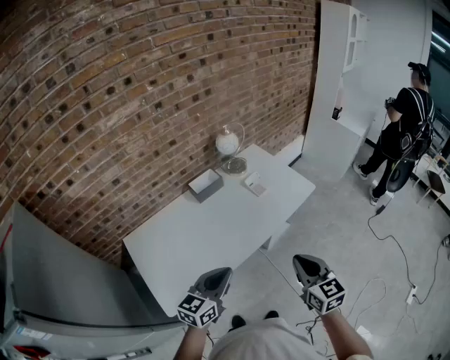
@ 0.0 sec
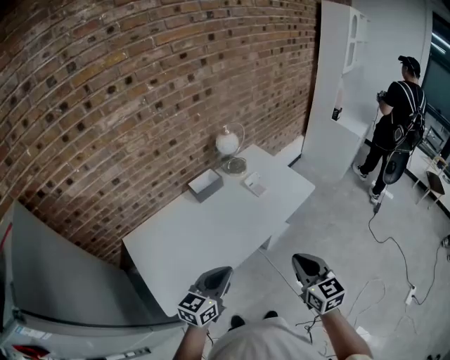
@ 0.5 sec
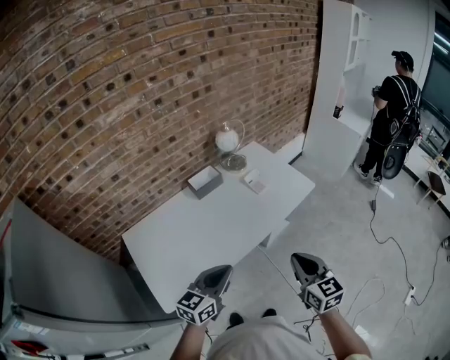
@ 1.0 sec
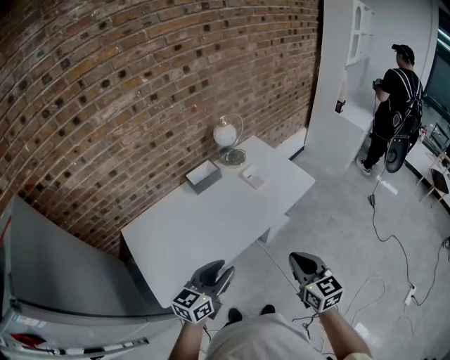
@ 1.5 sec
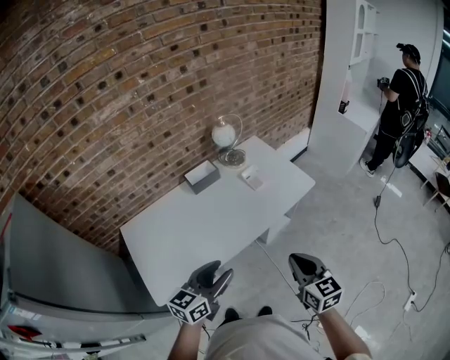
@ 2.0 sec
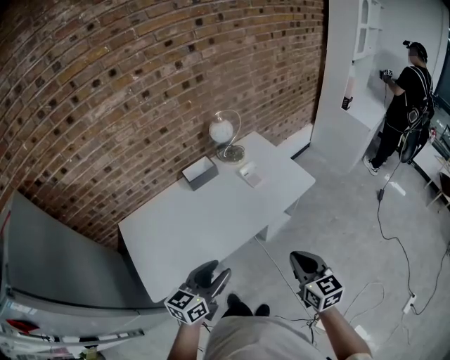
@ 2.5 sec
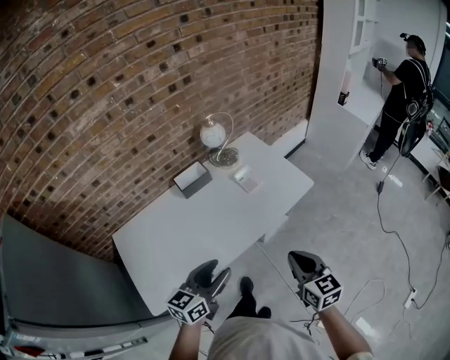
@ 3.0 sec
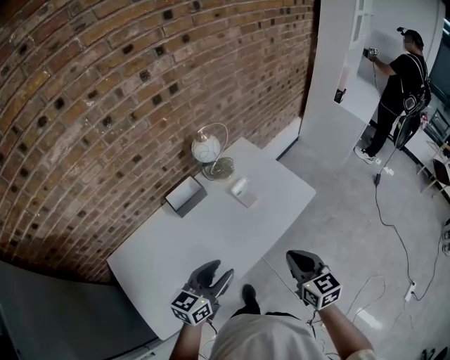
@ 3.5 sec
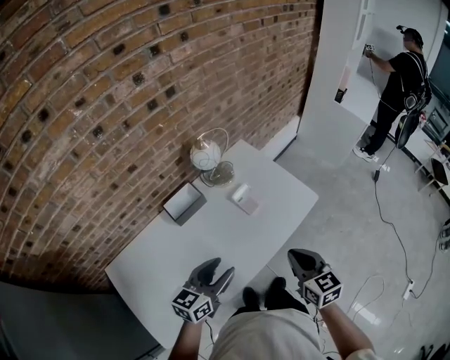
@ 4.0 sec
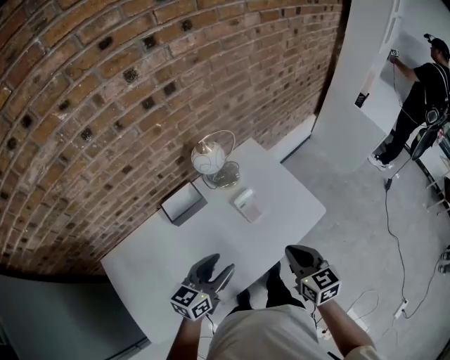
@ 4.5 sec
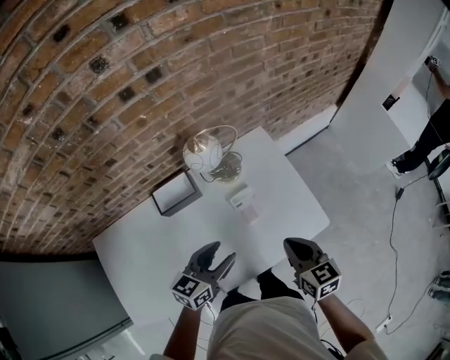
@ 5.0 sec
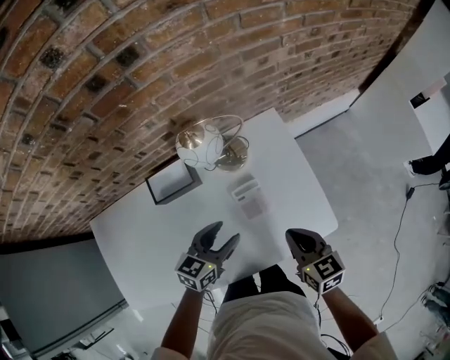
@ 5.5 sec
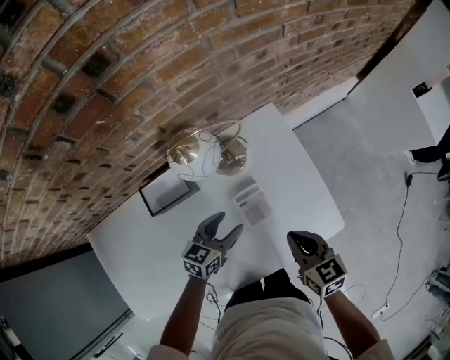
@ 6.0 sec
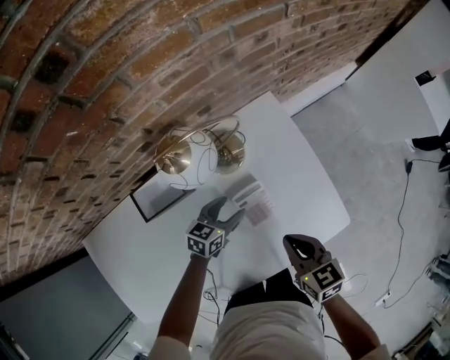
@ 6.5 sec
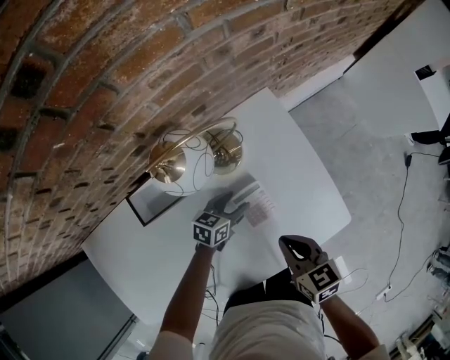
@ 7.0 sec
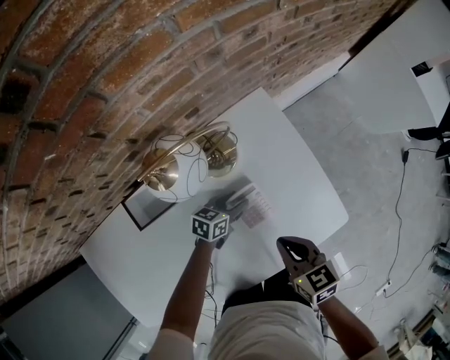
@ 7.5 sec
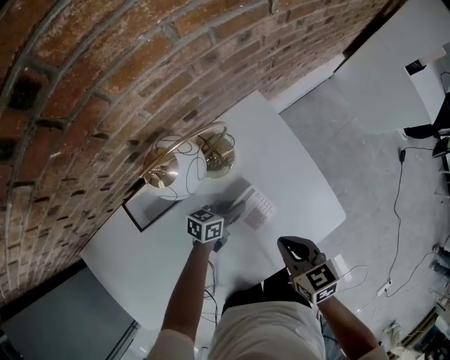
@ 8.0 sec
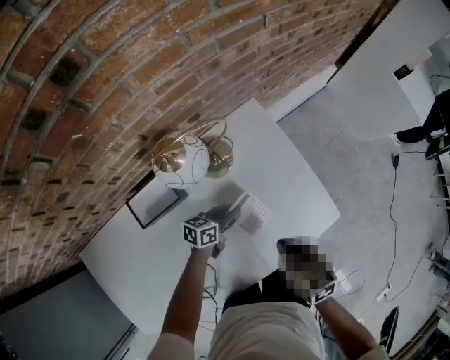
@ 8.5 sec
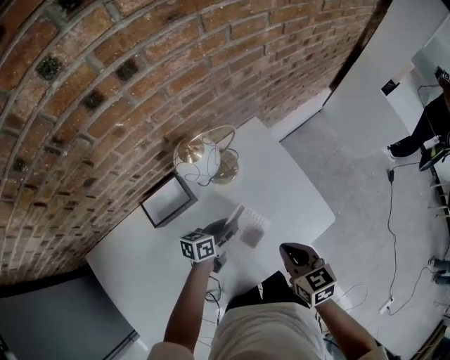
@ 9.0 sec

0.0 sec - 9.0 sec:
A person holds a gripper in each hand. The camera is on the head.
0.0 sec - 2.0 sec: Both grippers move to the right, about 5 cm. The left gripper opens up.
2.0 sec - 4.5 sec: Both grippers travel together forward, approximately 35 cm.
4.5 sec - 7.0 sec: The right gripper goes some 25 cm forward and downward, and turns by approximately 20 degrees; the left gripper travels downward and forward by some 40 cm, and turns by approximately 30 degrees.
7.0 sec - 9.0 sec: Both grippers travel together upward and backward, approximately 10 cm. The left gripper closes its fingers.

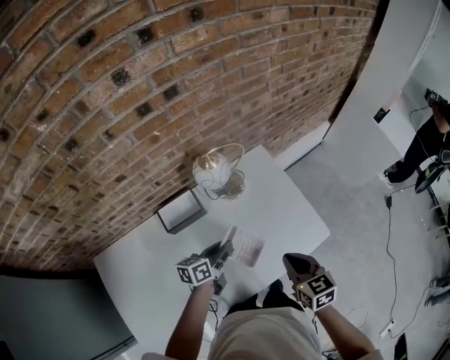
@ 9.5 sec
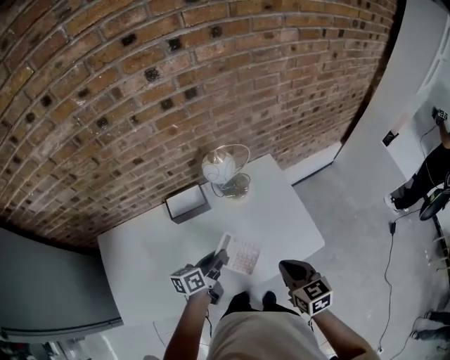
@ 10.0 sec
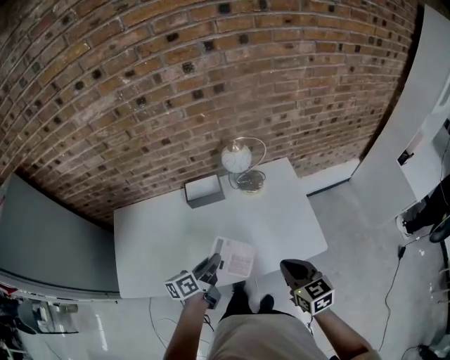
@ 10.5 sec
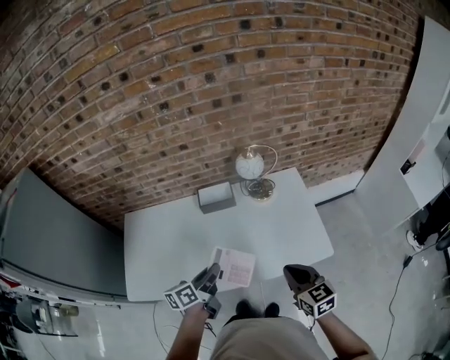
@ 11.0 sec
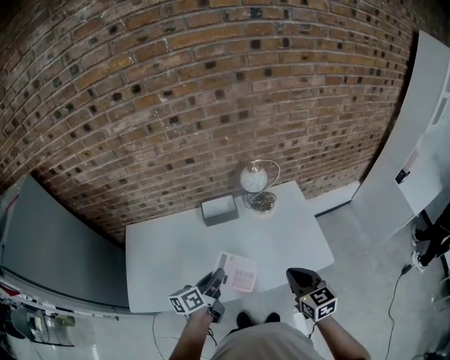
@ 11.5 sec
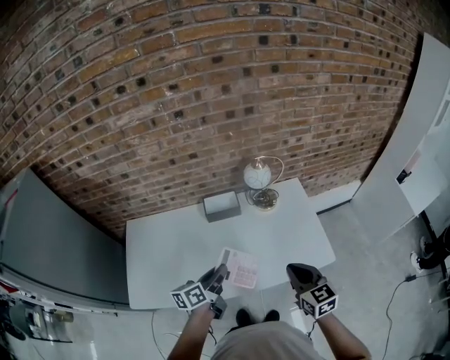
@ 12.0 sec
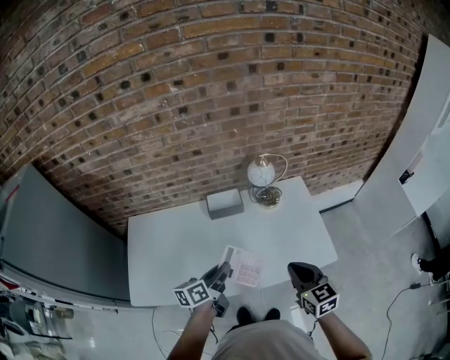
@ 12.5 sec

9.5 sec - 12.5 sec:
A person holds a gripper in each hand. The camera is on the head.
9.5 sec - 11.0 sec: The right gripper shifts by approximately 15 cm, and turns by some 20 degrees; the left gripper changes place by about 25 cm, and changes its angle by some 30 degrees.
11.0 sec - 12.5 sec: The right gripper changes place by roughly 5 cm.

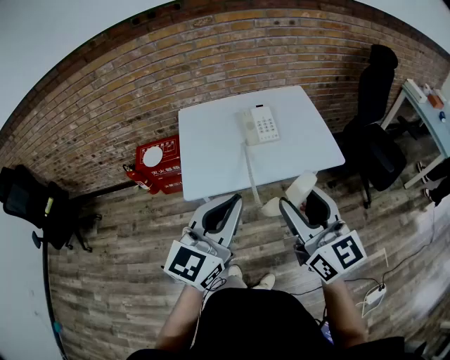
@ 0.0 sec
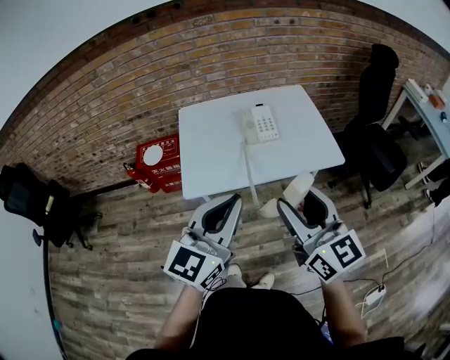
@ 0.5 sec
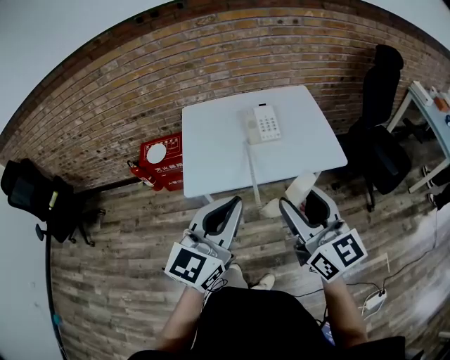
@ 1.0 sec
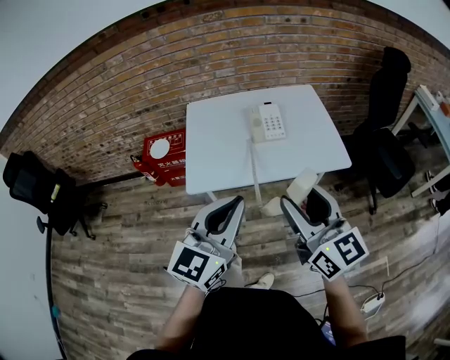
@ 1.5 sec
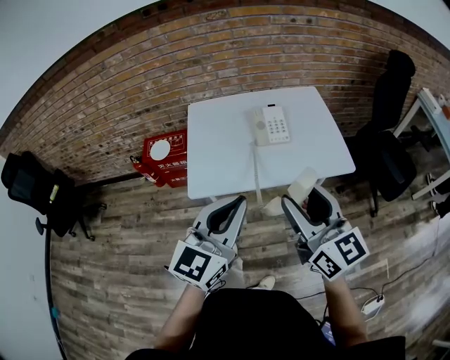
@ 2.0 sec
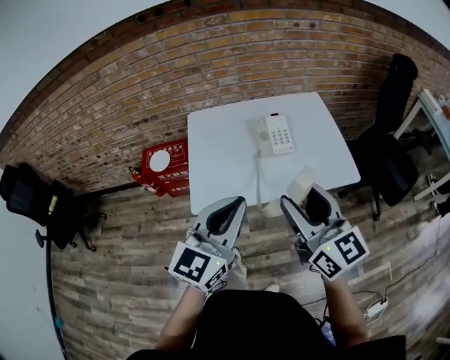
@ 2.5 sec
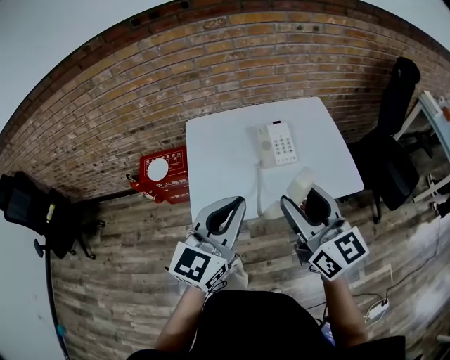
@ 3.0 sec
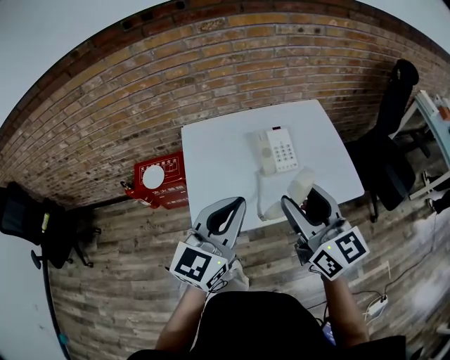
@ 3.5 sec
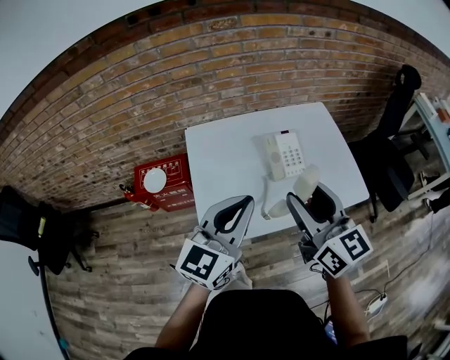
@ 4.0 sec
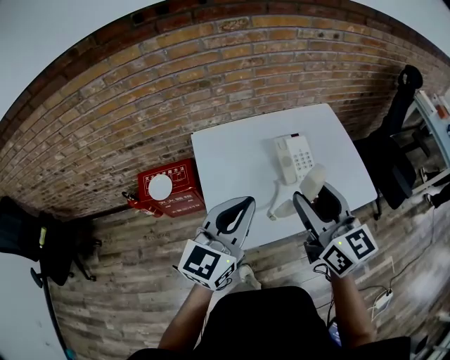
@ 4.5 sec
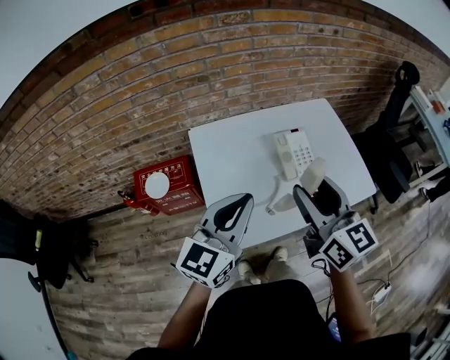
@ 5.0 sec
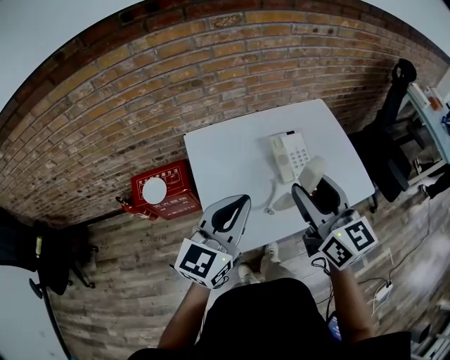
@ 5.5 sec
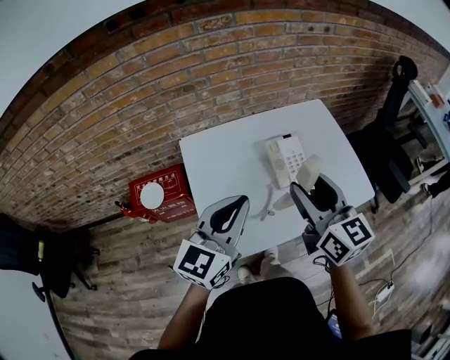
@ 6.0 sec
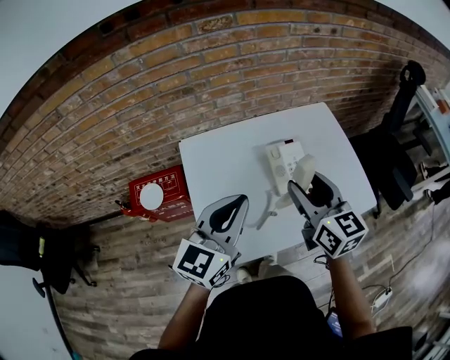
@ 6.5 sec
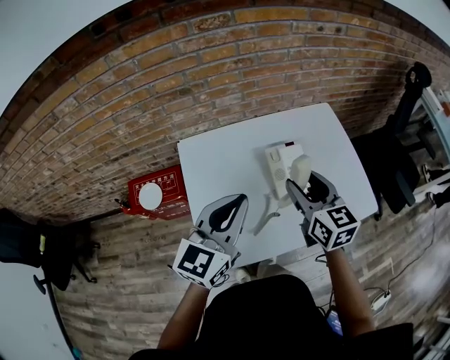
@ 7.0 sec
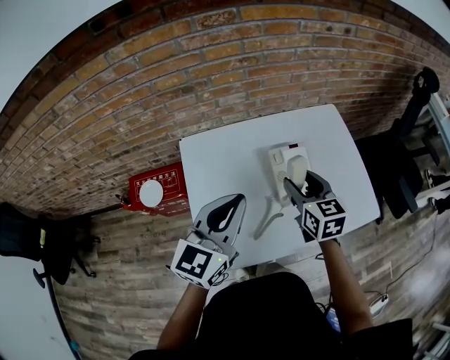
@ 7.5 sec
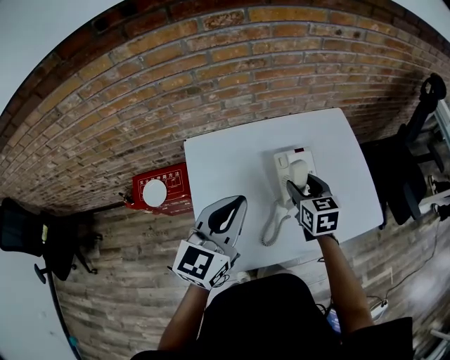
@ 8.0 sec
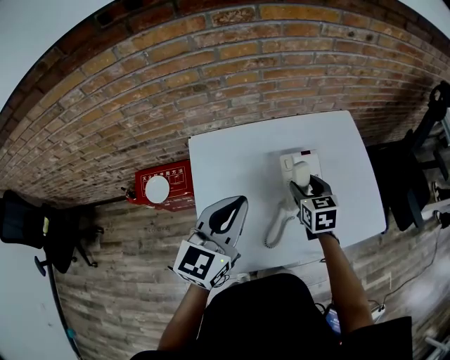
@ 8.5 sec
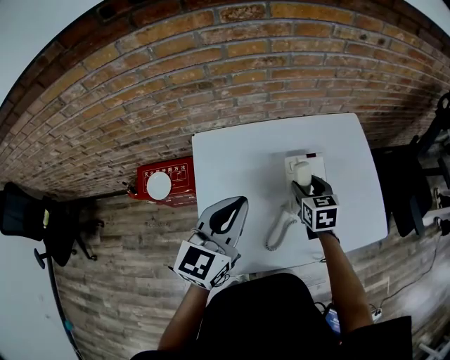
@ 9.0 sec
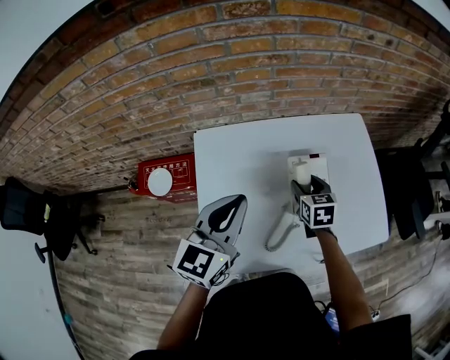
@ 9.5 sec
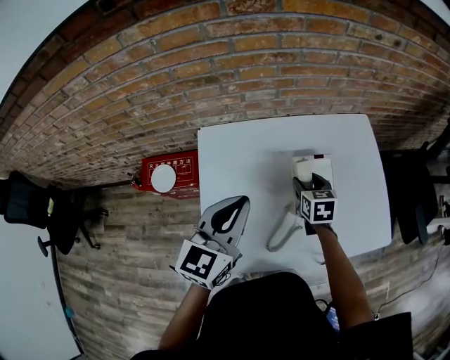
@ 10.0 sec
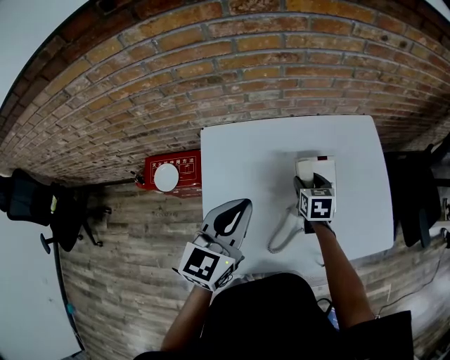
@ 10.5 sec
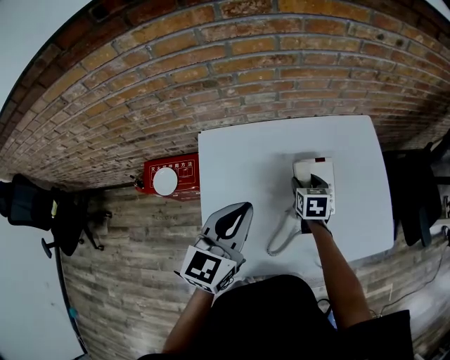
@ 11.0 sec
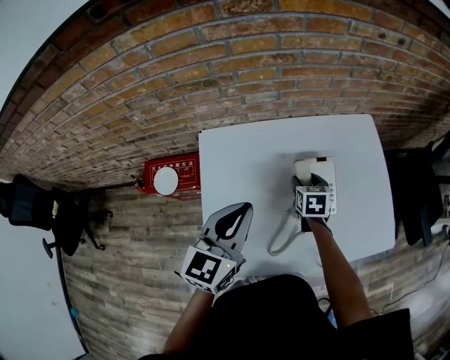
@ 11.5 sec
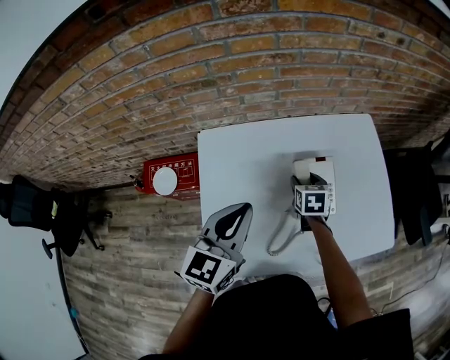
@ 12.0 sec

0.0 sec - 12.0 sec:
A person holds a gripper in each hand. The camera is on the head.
0.0 sec - 2.0 sec: The grippers stay close to where they were, moving slightly.
2.0 sec - 4.0 sec: The two grippers go about 25 cm forward and to the left.
4.0 sec - 6.0 sec: Both grippers travel together forward, approximately 10 cm.
6.0 sec - 8.0 sec: The right gripper heads downward and forward, covering roughly 25 cm, and rotates roughly 30 degrees, while the left gripper travels forward by some 10 cm.
8.0 sec - 10.0 sec: The right gripper heads downward and forward, covering roughly 10 cm; the left gripper changes place by some 5 cm.
10.0 sec - 12.0 sec: The grippers make only small movements.

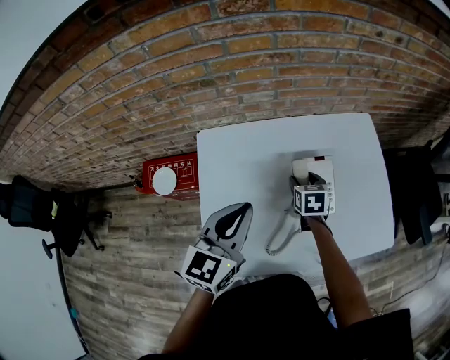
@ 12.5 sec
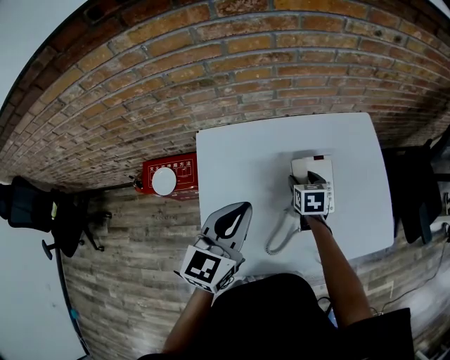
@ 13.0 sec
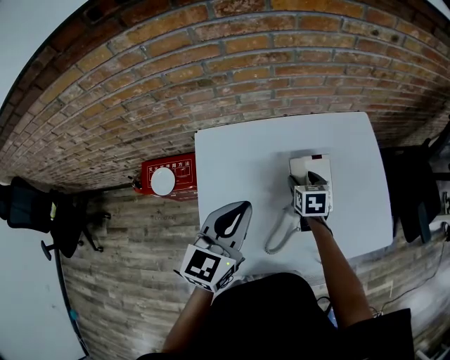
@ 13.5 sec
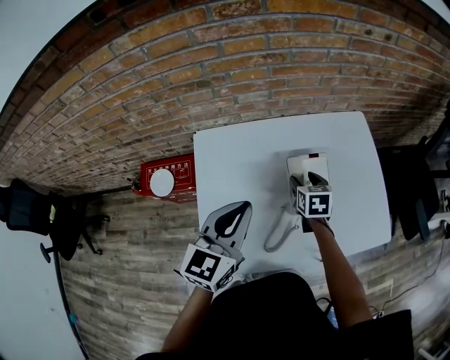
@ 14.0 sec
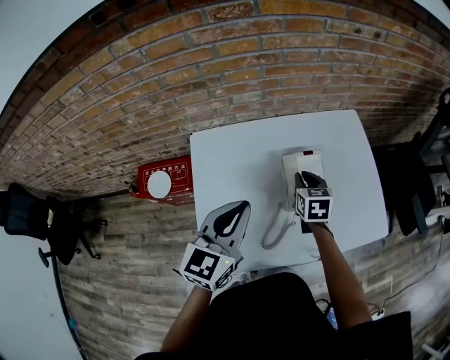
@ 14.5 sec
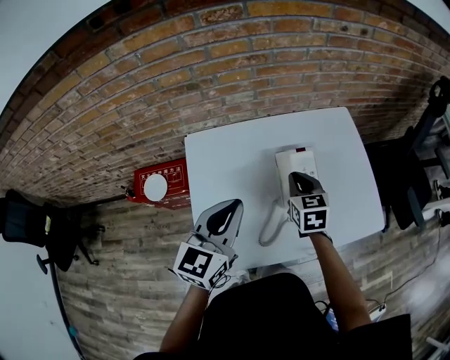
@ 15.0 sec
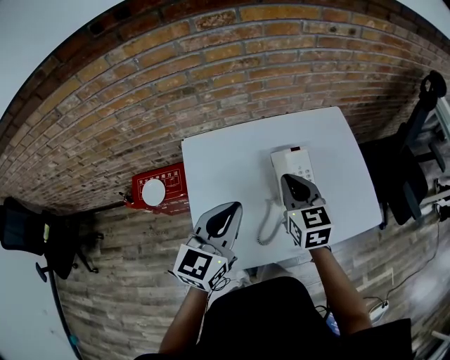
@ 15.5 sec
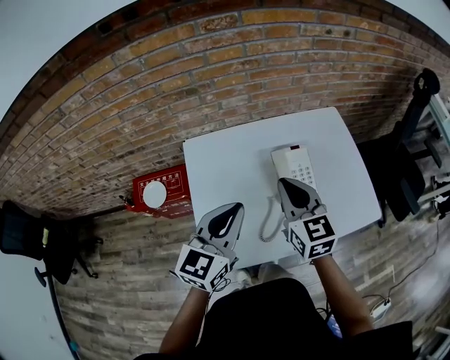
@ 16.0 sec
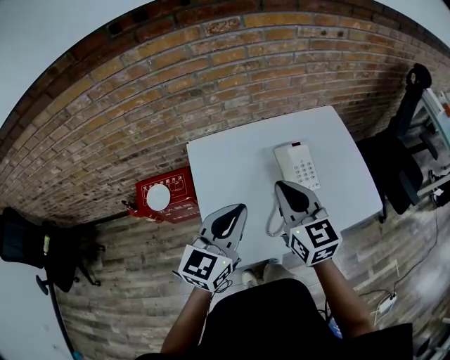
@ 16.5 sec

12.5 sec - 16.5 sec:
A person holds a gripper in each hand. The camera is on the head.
12.5 sec - 14.5 sec: The right gripper goes some 5 cm upward, and closes.
14.5 sec - 16.5 sec: The right gripper goes some 25 cm upward, backward and to the left, and tilts its fingers some 30 degrees upward. Meanwhile the left gripper heads backward, covering approximately 10 cm.
